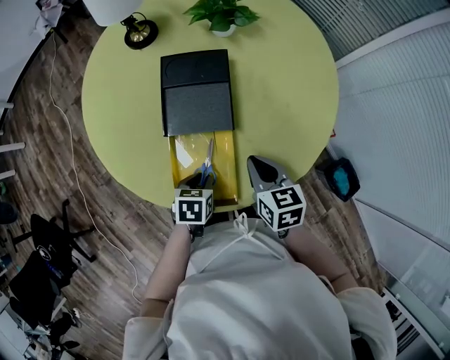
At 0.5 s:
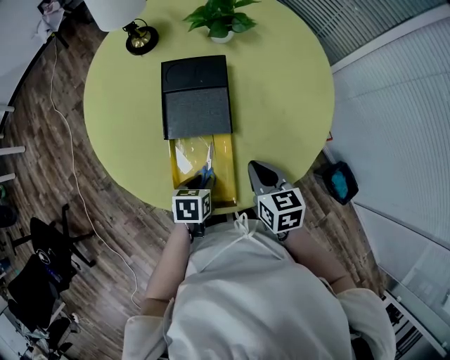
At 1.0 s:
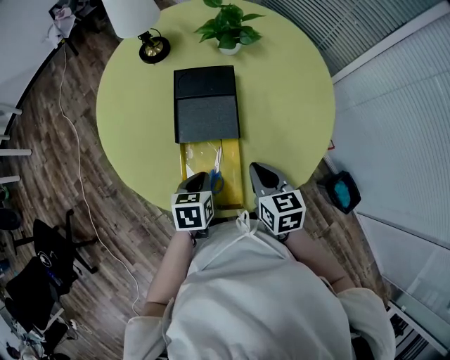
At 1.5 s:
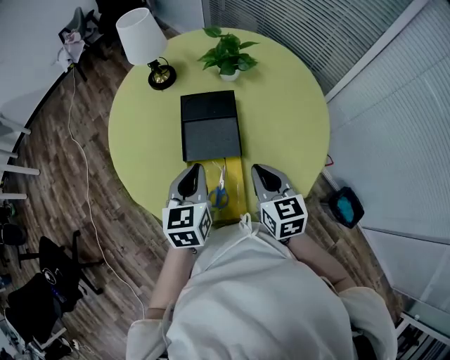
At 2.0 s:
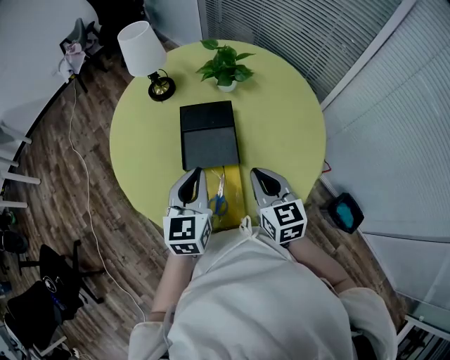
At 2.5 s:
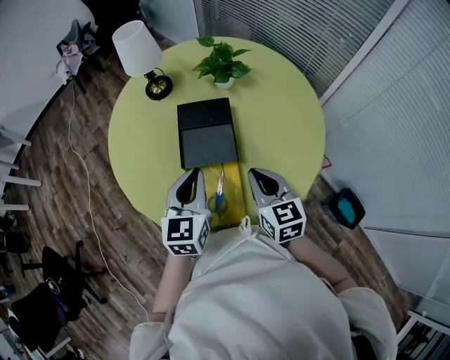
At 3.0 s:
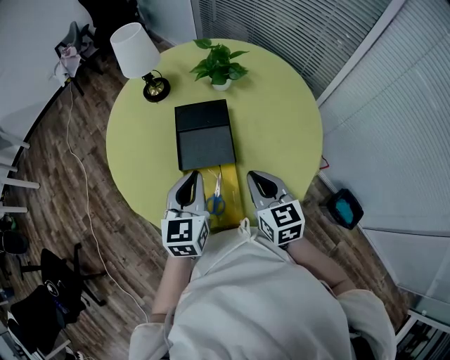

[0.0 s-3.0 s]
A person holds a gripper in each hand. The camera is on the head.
0.0 to 1.5 s: The right gripper goes approximately 10 cm upward. The left gripper is displaced upward by roughly 20 cm, and tilts its fingers roughly 40 degrees upward.
1.5 to 3.0 s: The grippers make only small movements.

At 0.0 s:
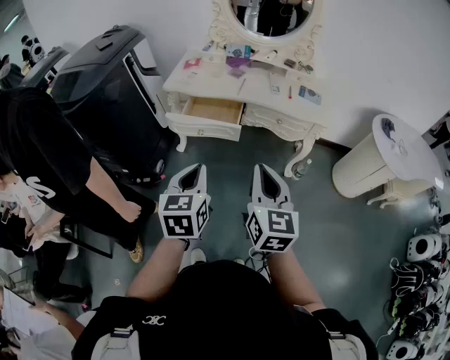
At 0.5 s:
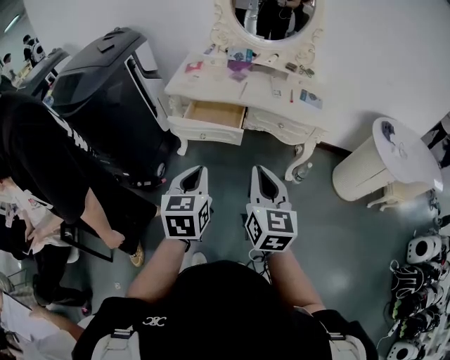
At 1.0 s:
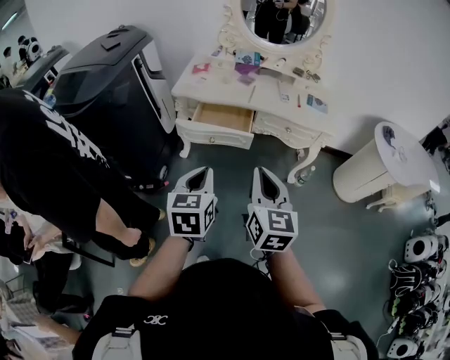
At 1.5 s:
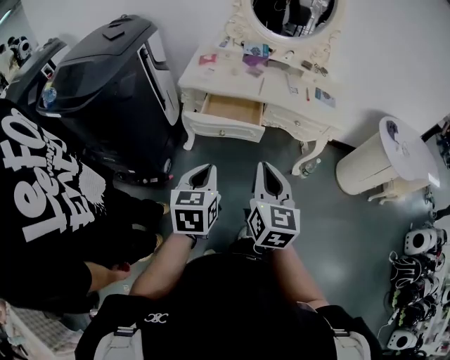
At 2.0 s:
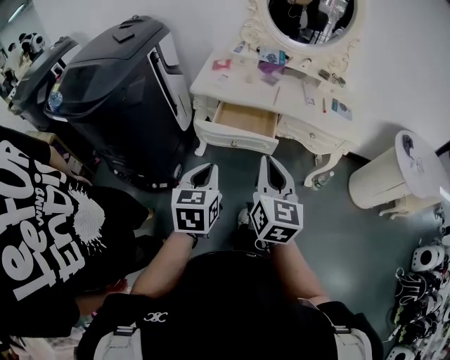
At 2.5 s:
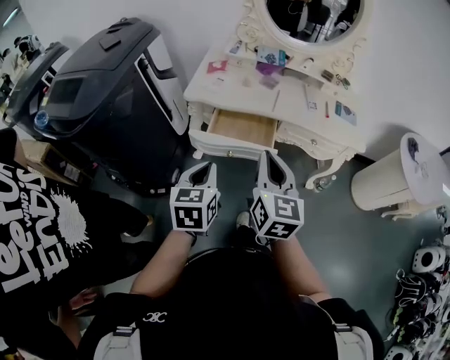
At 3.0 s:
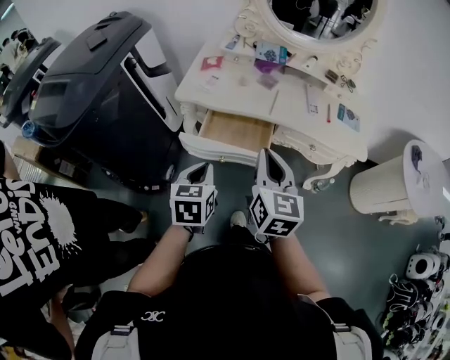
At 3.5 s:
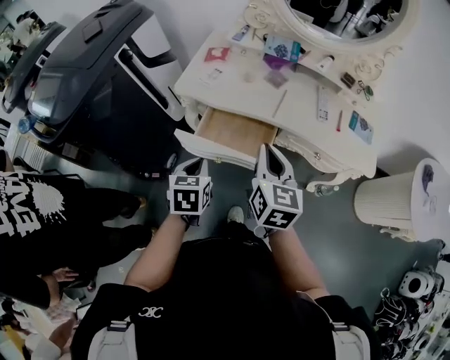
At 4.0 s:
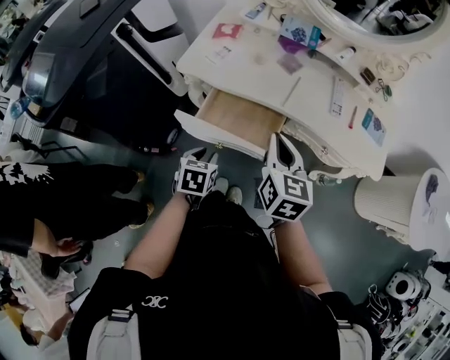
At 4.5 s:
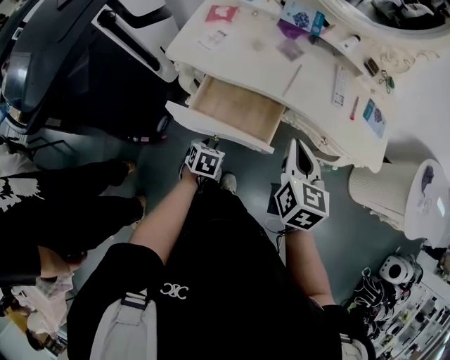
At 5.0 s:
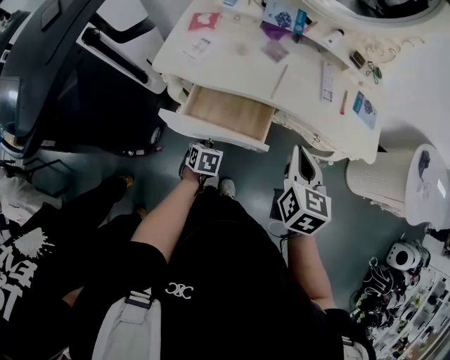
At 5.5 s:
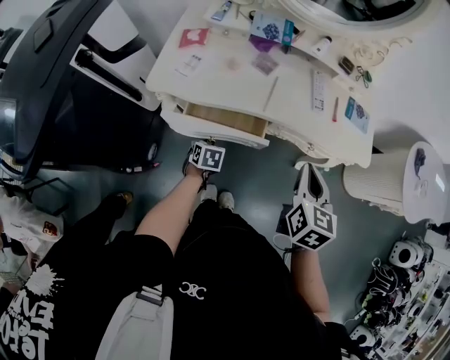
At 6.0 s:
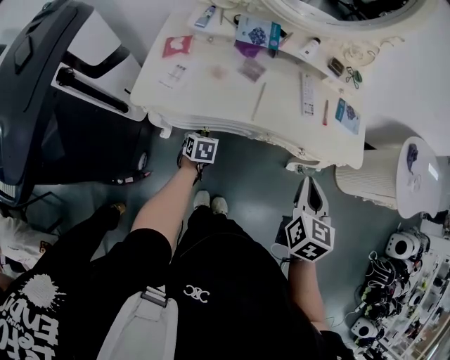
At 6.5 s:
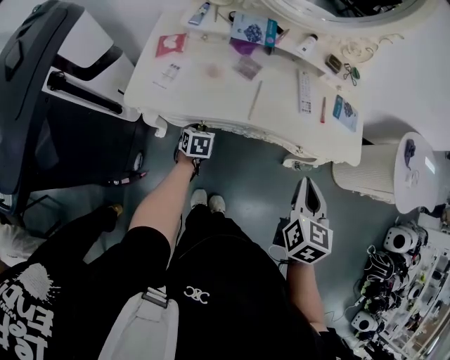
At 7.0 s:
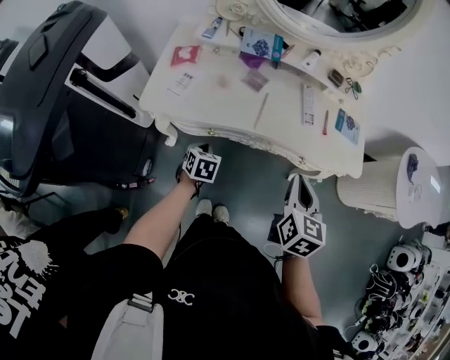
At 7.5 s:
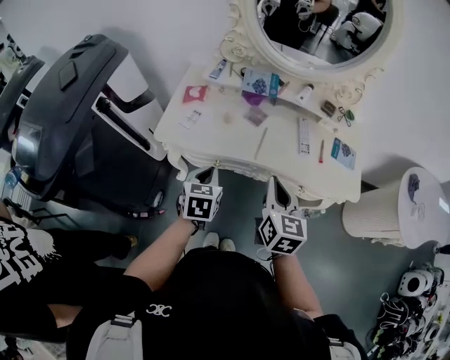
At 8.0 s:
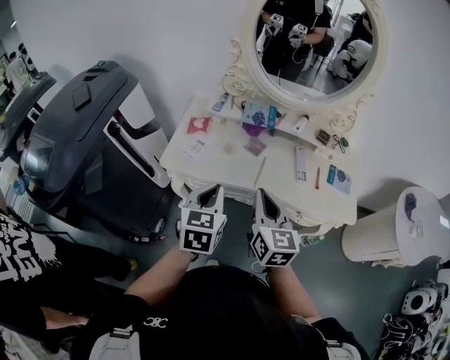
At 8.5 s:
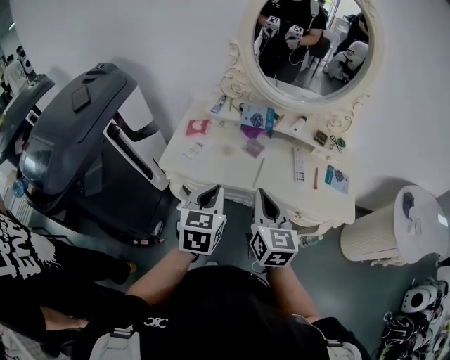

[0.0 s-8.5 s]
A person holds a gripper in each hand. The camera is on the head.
0.0 to 2.0 s: Both grippers travel together to the left and forward, approximately 15 cm.
2.0 to 4.0 s: The left gripper heads forward and downward, covering approximately 30 cm, turns by approximately 30 degrees, and opens its fingers; the right gripper shifts some 25 cm forward.
4.0 to 6.5 s: The right gripper shifts roughly 15 cm to the right, and rotates approximately 30 degrees, while the left gripper shifts roughly 25 cm forward and downward.
6.5 to 8.5 s: The right gripper moves to the left and upward, some 15 cm, and turns by roughly 30 degrees; the left gripper moves upward, roughly 35 cm, turns by some 30 degrees, and closes.

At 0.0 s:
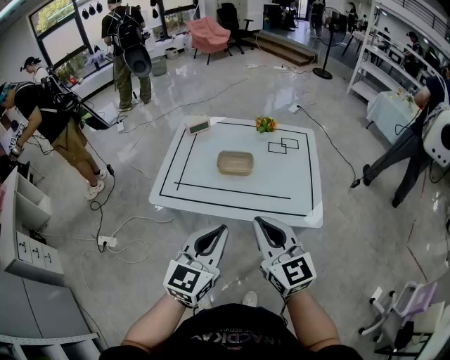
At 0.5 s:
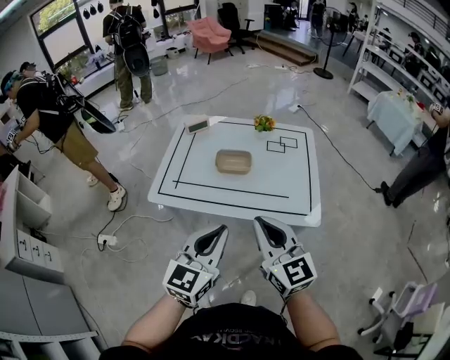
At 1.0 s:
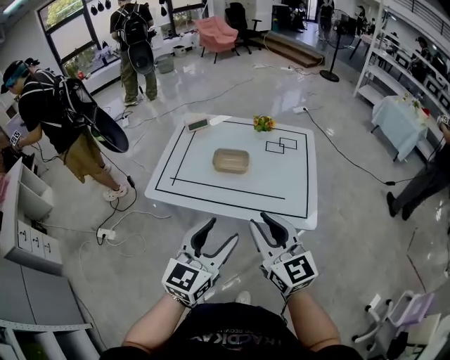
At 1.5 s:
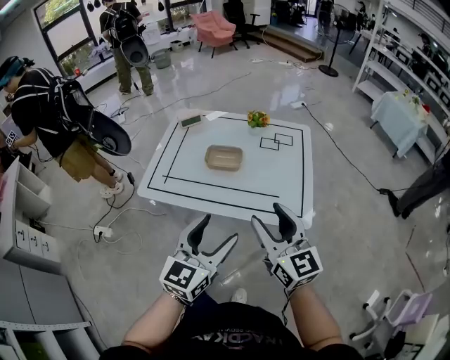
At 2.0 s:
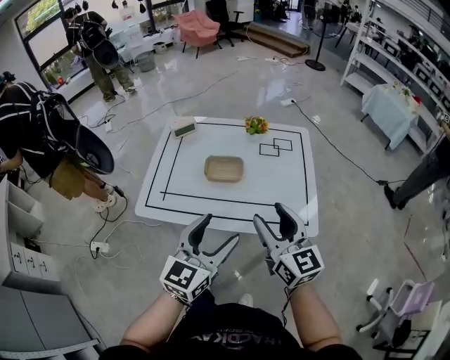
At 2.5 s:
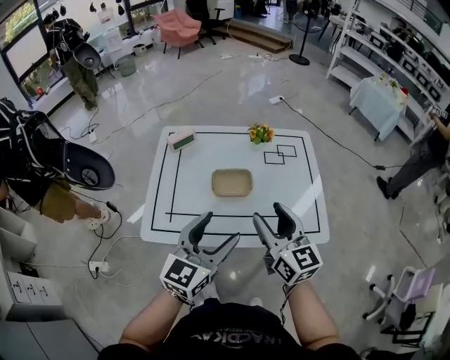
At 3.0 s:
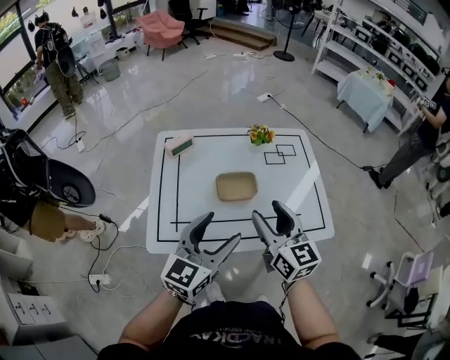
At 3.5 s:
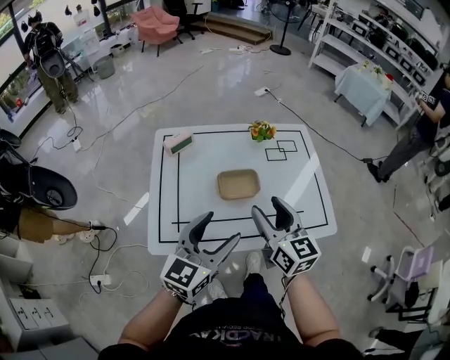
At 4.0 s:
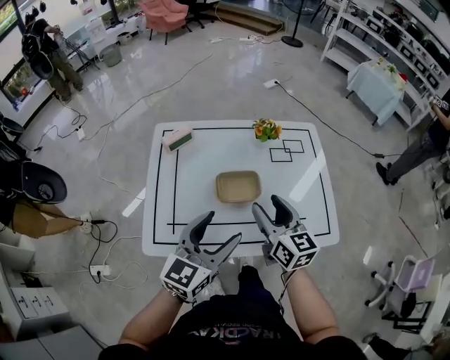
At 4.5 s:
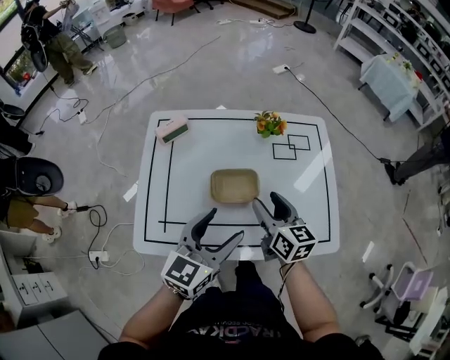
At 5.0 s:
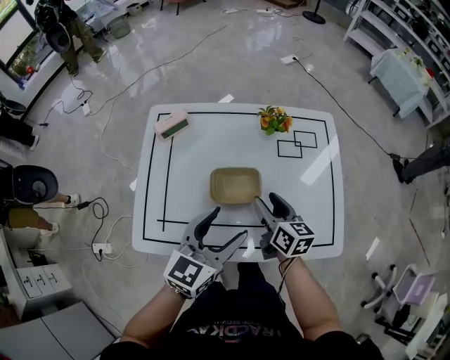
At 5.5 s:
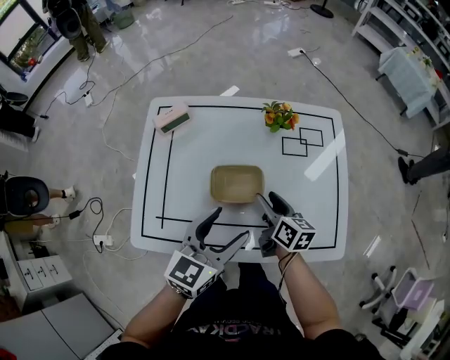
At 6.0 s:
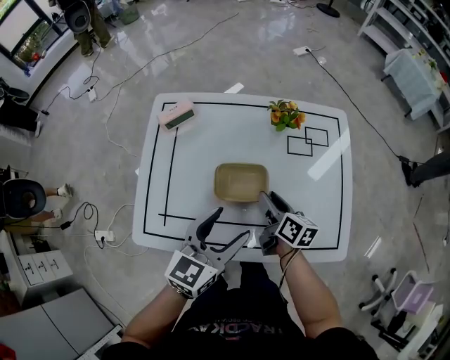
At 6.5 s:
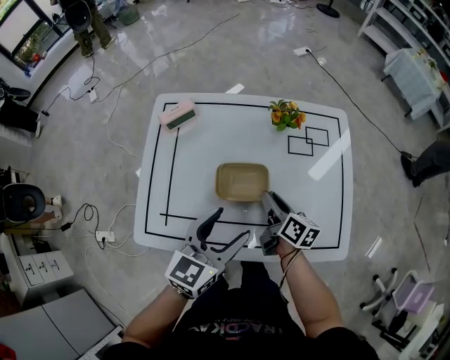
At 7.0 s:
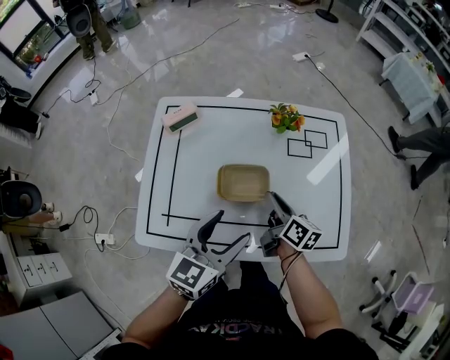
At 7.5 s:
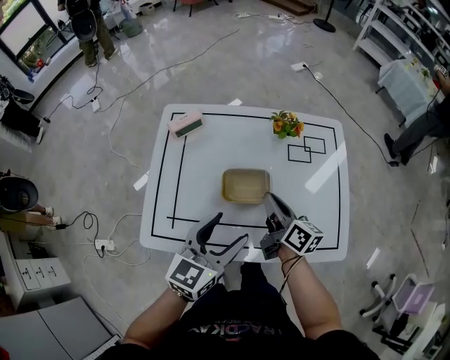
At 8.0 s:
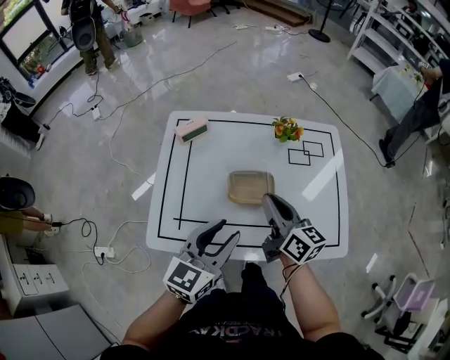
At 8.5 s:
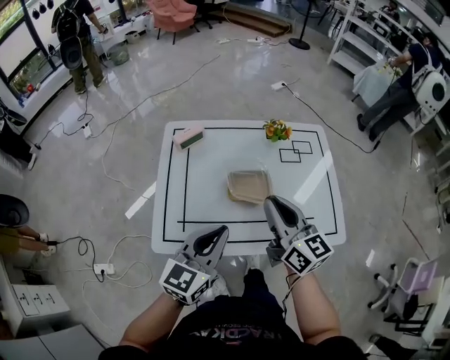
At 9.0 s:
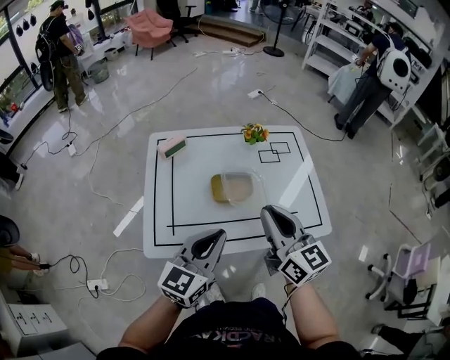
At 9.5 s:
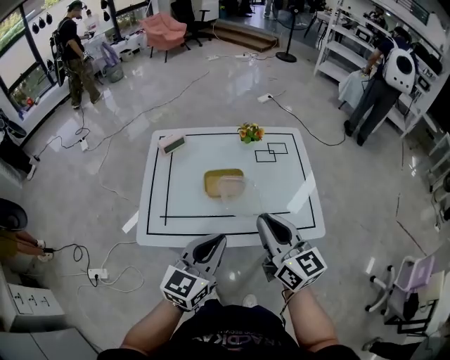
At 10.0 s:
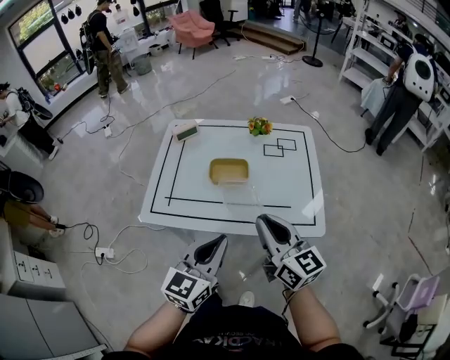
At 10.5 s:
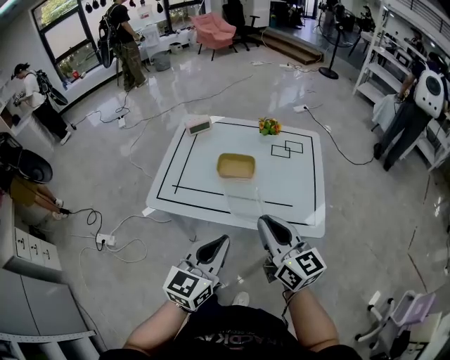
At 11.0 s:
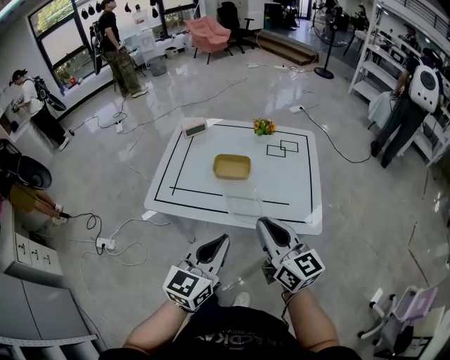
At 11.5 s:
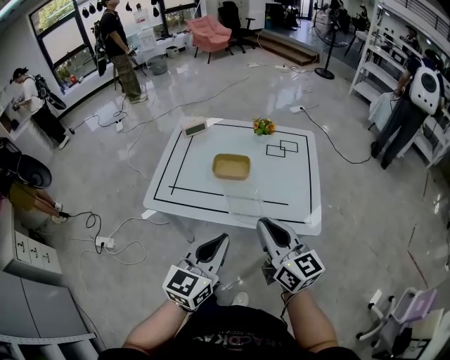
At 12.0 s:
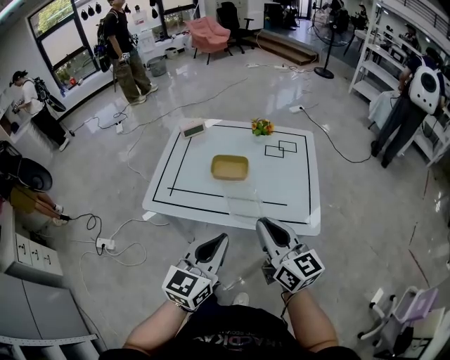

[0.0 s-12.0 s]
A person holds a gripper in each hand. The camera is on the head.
0.0 to 2.0 s: The left gripper travels forward by about 5 cm, and opens. Meanwhile the right gripper shifts roughly 10 cm forward and to the right, and opens up.
2.0 to 4.0 s: The right gripper shifts roughly 20 cm forward, to the left and downward, while the left gripper moves forward and to the left, some 15 cm.
4.0 to 6.0 s: The left gripper heads downward and forward, covering approximately 10 cm, while the right gripper shifts approximately 20 cm downward and forward, and turns by some 30 degrees.
6.0 to 8.0 s: The left gripper moves to the left, some 5 cm, and closes; the right gripper is displaced upward by roughly 15 cm, swivels about 20 degrees, and closes.
8.0 to 10.0 s: The right gripper goes about 25 cm backward, upward and to the right. The left gripper is displaced backward and to the right by some 20 cm, and closes its fingers.
10.0 to 12.0 s: The left gripper shifts by roughly 5 cm; the right gripper moves about 5 cm.

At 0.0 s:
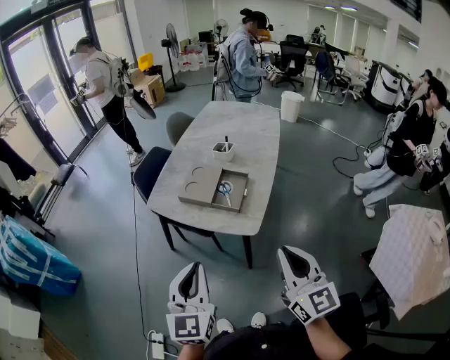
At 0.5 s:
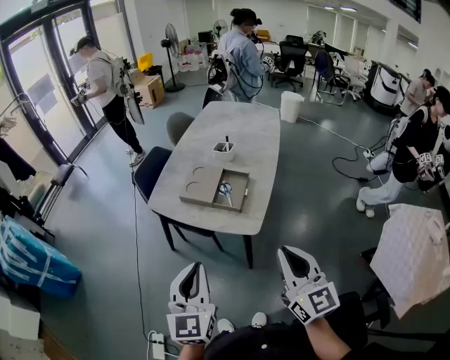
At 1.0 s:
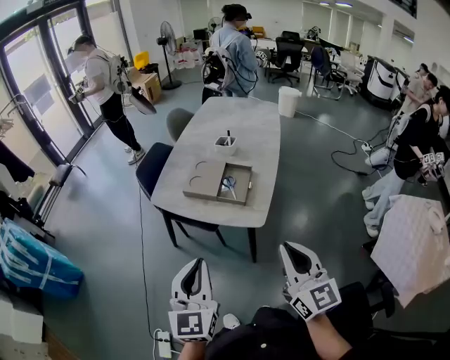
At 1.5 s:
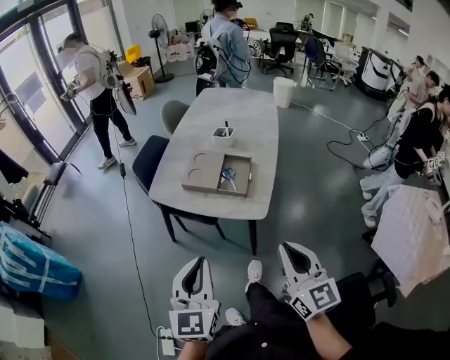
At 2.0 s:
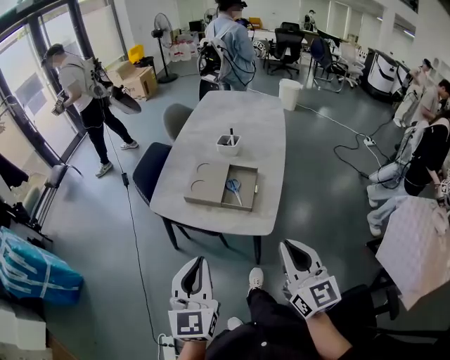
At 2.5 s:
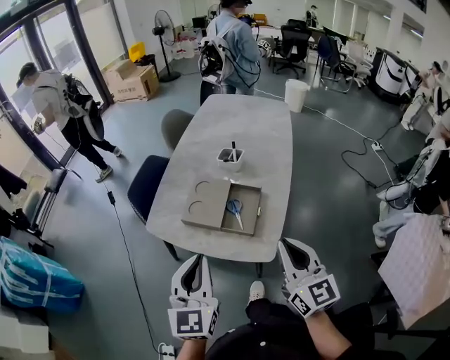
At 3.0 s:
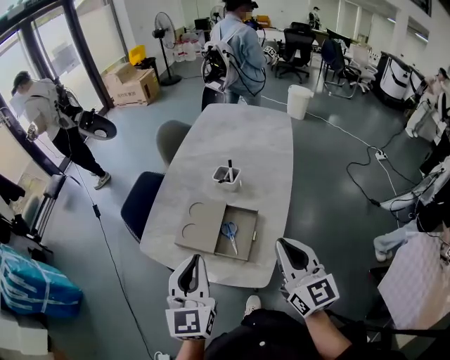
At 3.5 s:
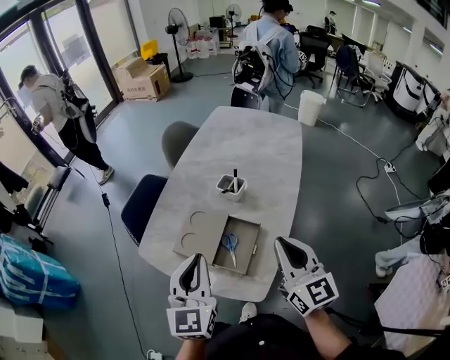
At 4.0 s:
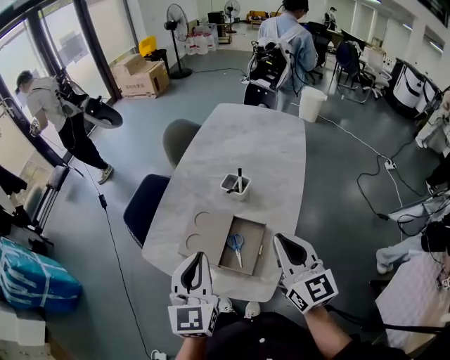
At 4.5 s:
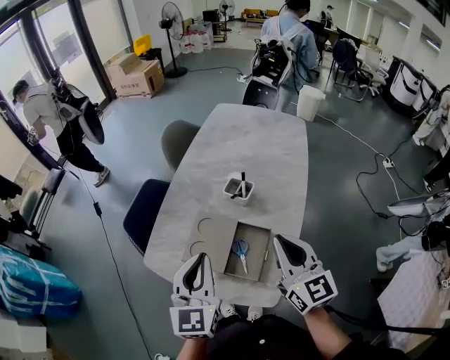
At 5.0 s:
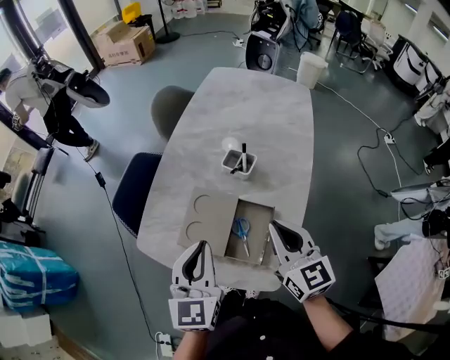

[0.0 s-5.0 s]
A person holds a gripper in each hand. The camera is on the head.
0.0 to 2.5 s: Both grippers travel together forward, approximately 20 cm.
2.5 to 5.0 s: The grippers both shift forward by approximately 25 cm.
